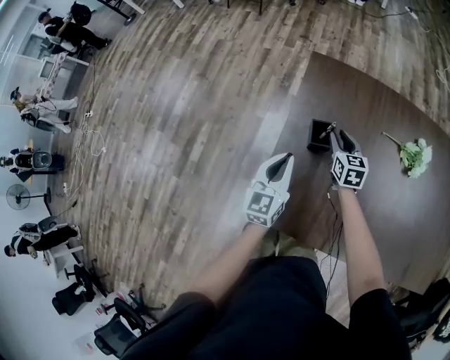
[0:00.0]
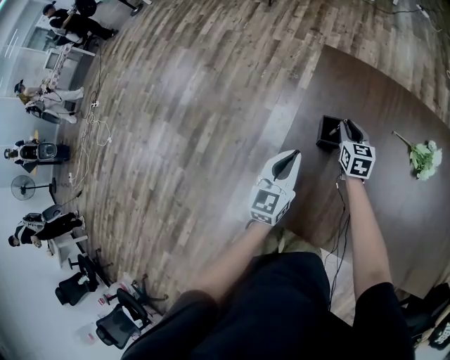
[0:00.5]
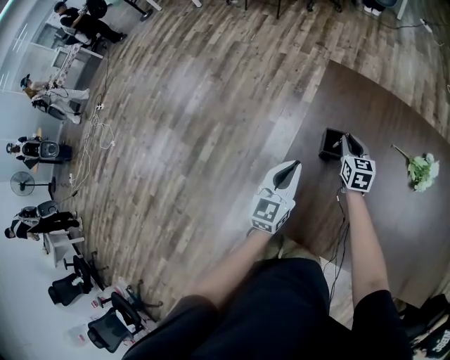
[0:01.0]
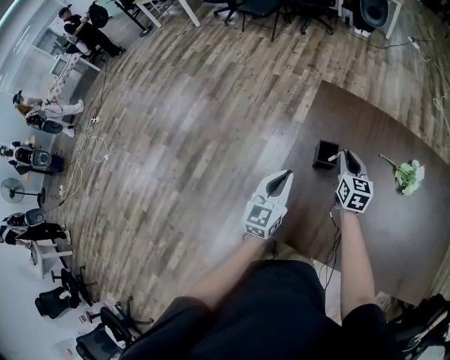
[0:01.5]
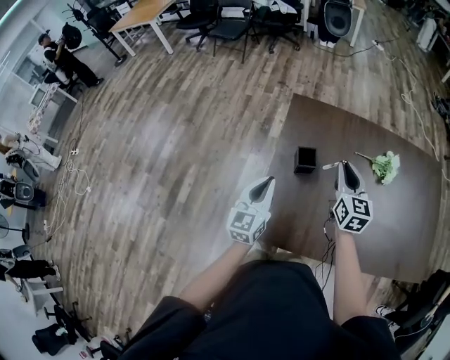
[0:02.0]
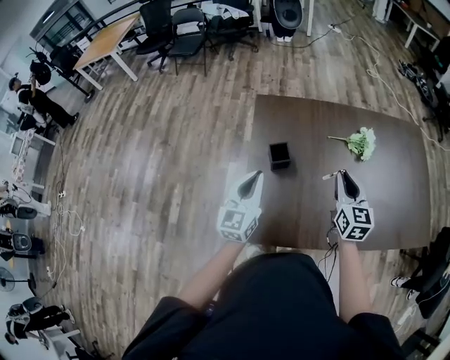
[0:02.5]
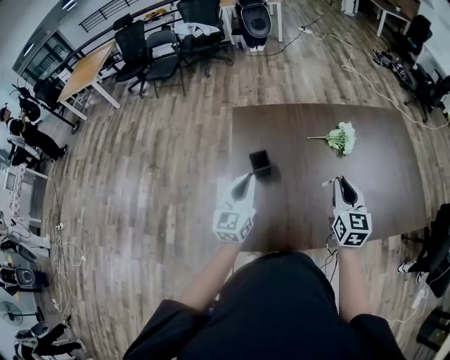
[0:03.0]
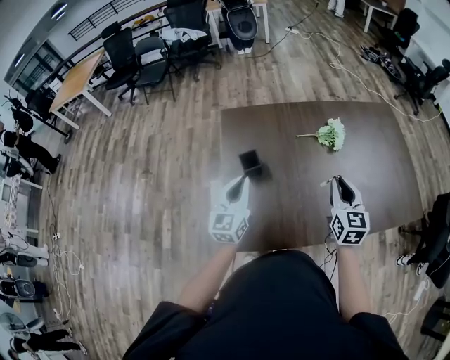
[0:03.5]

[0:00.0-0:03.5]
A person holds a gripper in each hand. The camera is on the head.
0:00.0 to 0:02.0: The left gripper goes approximately 15 cm upward, backward and to the left. The right gripper shifts approximately 25 cm upward and backward, and changes its angle by approximately 20 degrees.
0:02.0 to 0:03.5: The right gripper moves to the right and backward, some 25 cm, while the left gripper goes approximately 10 cm to the right.

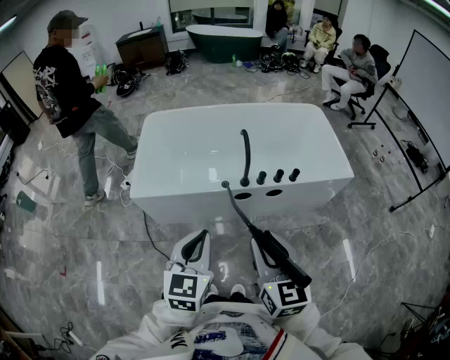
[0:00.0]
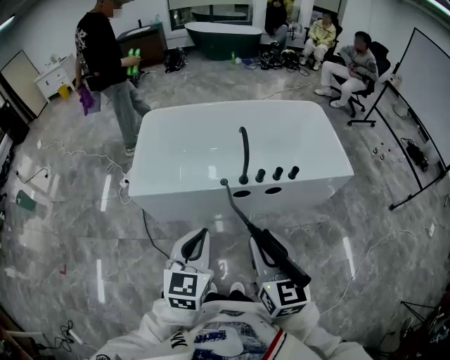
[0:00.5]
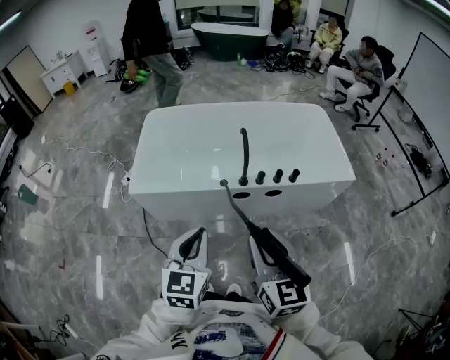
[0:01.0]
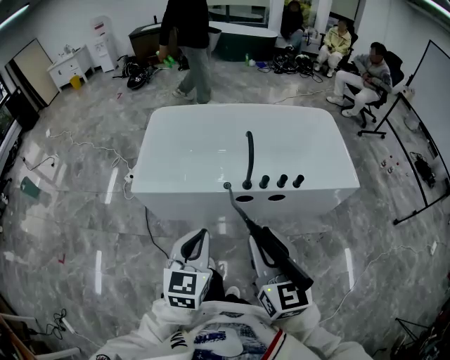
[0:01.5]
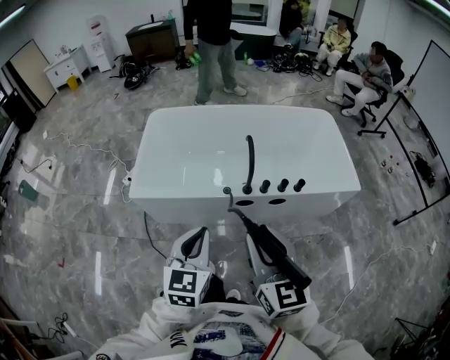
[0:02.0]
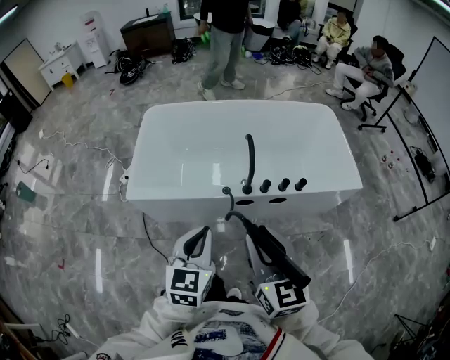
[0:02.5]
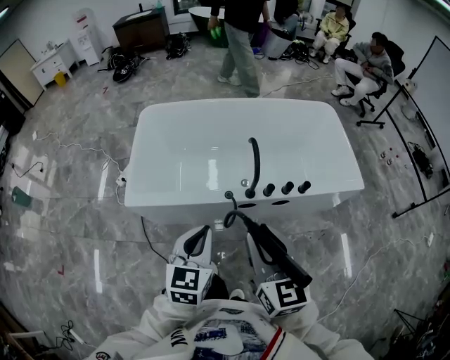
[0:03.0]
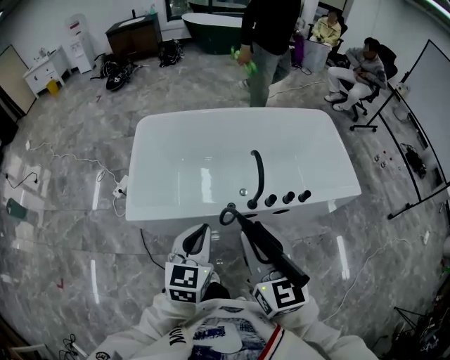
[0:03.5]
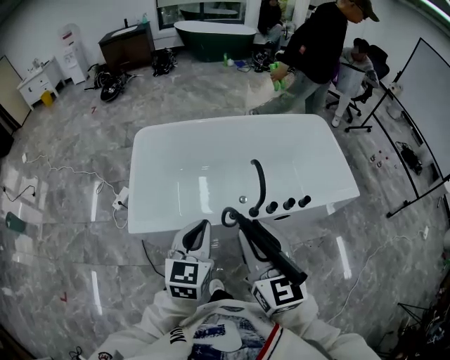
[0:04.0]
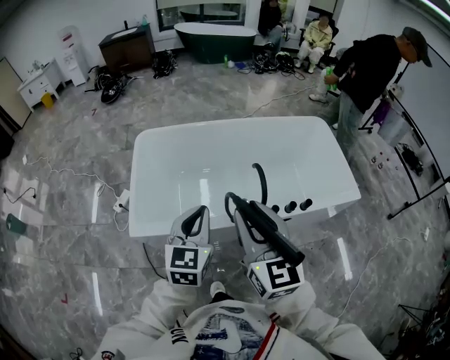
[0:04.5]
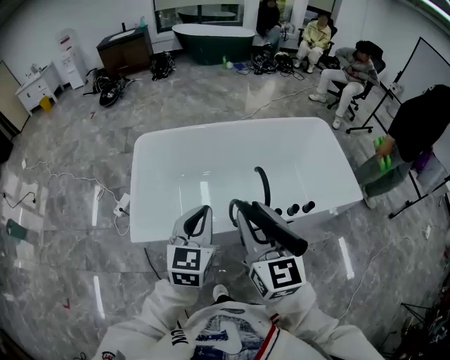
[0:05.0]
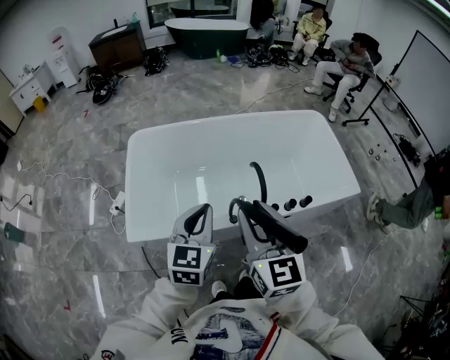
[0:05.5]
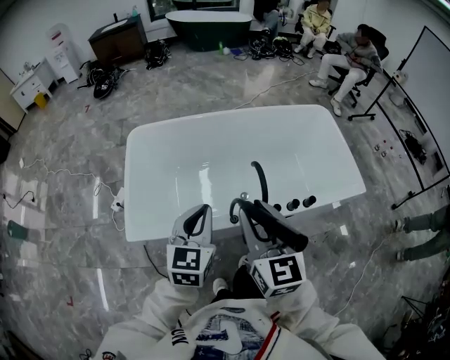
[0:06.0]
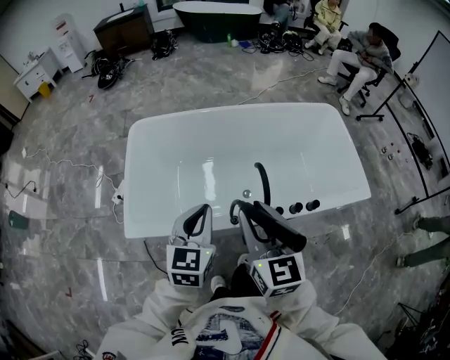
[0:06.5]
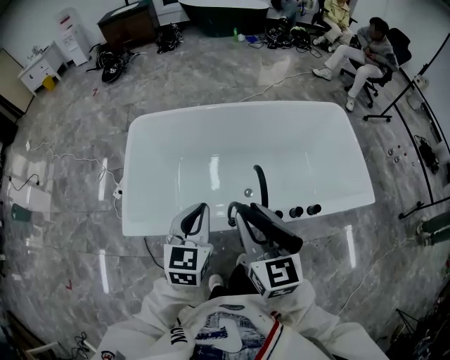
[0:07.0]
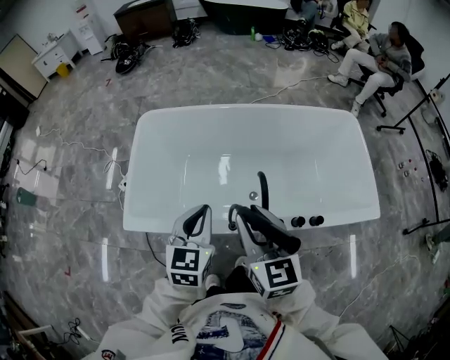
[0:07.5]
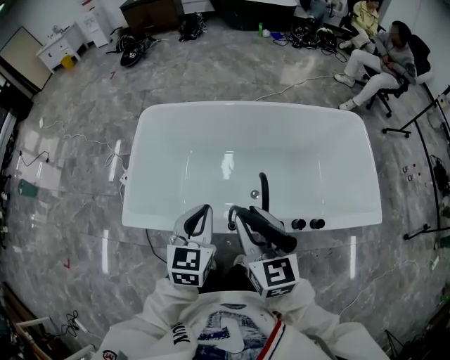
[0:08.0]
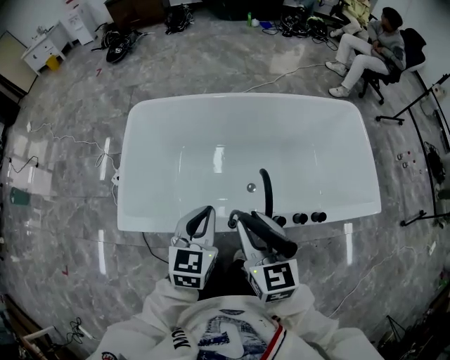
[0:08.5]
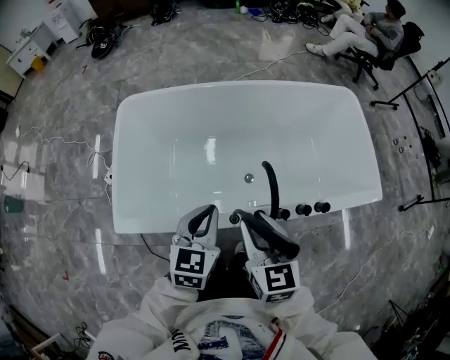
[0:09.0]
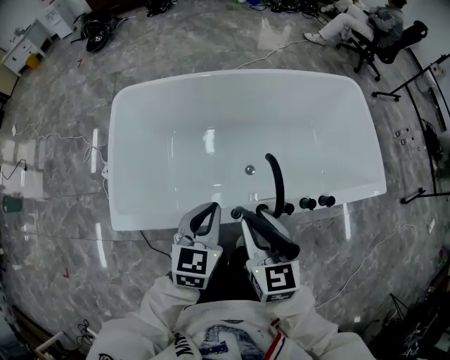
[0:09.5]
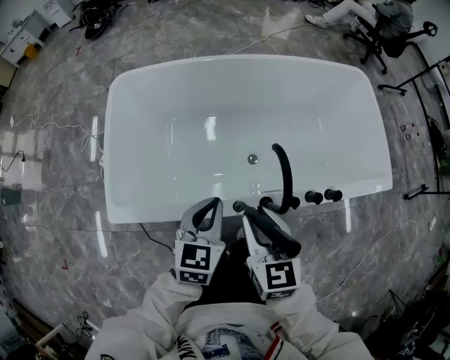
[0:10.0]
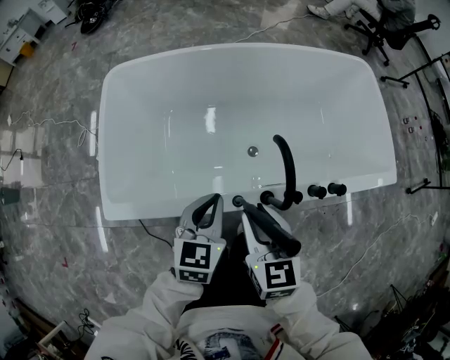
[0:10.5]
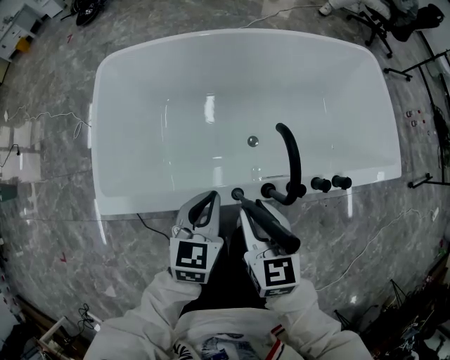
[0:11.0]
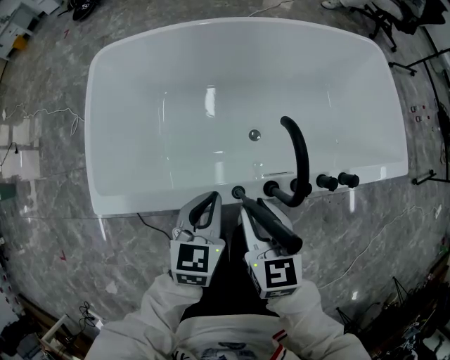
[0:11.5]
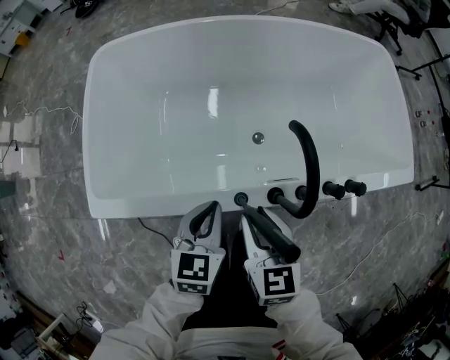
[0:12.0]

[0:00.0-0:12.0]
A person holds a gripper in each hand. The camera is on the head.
0:00.0 to 0:02.0: The two grippers go some 5 cm forward.
0:02.0 to 0:04.0: Both grippers move forward and to the left, roughly 20 cm.
0:04.0 to 0:06.0: The two grippers go some 10 cm forward.
0:06.0 to 0:08.0: The left gripper travels forward and downward by some 10 cm; the right gripper heads downward and forward, covering roughly 10 cm.
0:08.0 to 0:10.0: The two grippers go approximately 15 cm downward.
0:10.0 to 0:12.0: The grippers both shift downward by some 10 cm.

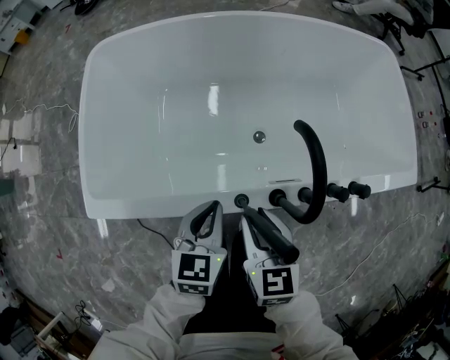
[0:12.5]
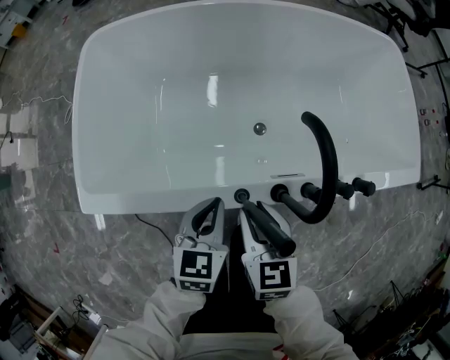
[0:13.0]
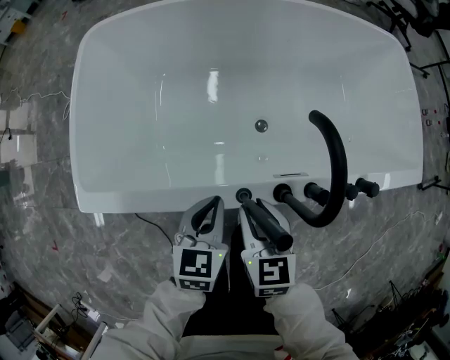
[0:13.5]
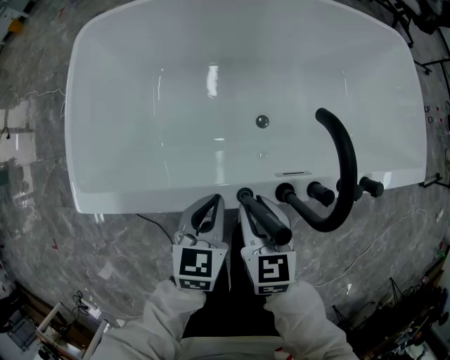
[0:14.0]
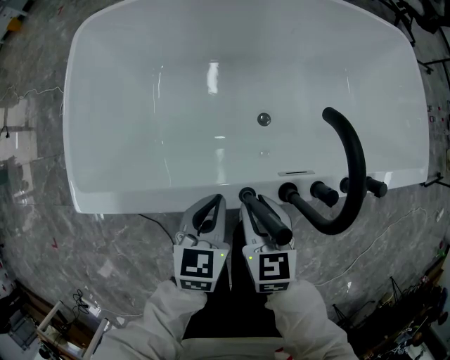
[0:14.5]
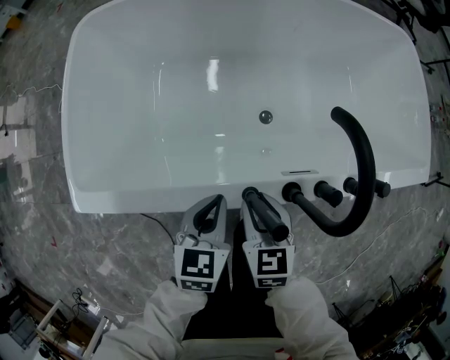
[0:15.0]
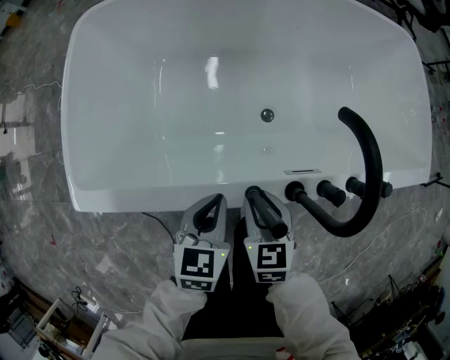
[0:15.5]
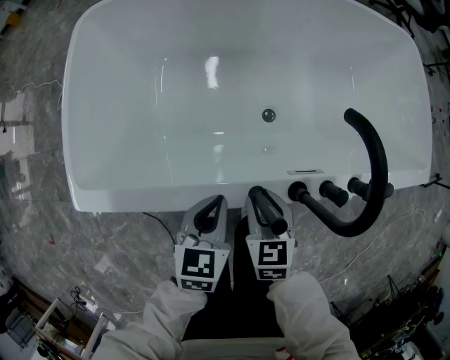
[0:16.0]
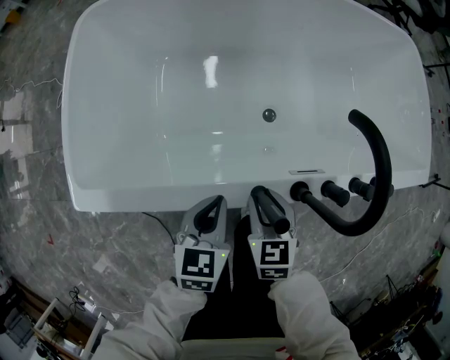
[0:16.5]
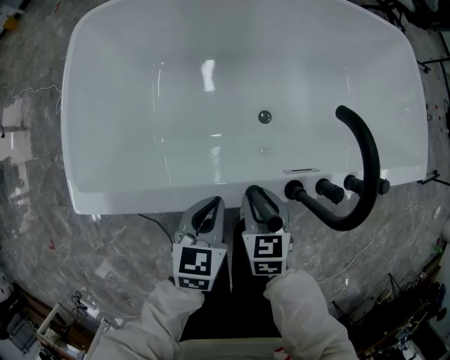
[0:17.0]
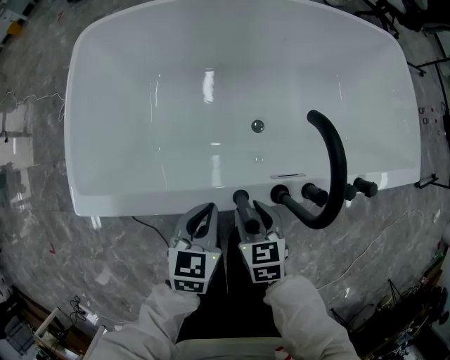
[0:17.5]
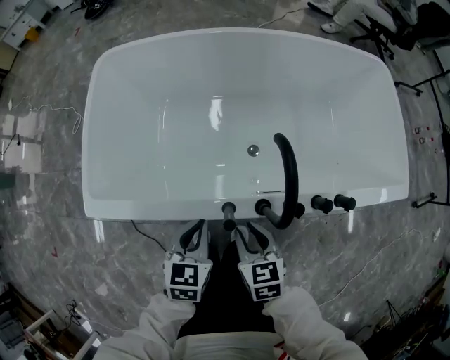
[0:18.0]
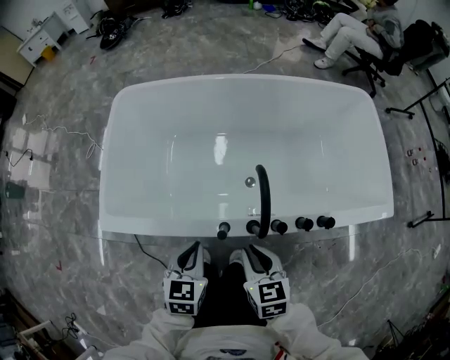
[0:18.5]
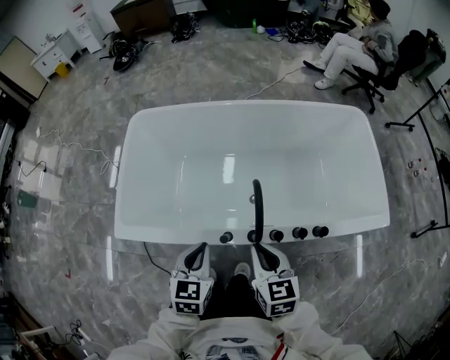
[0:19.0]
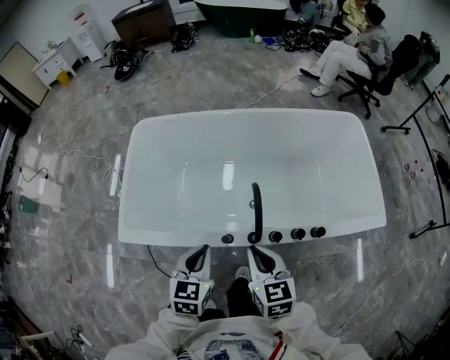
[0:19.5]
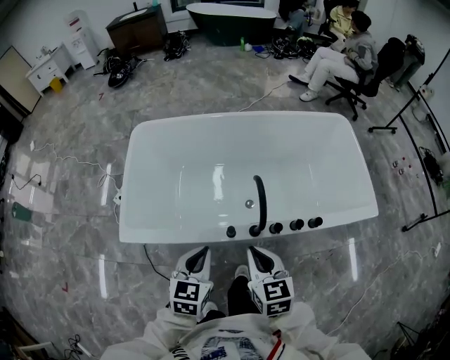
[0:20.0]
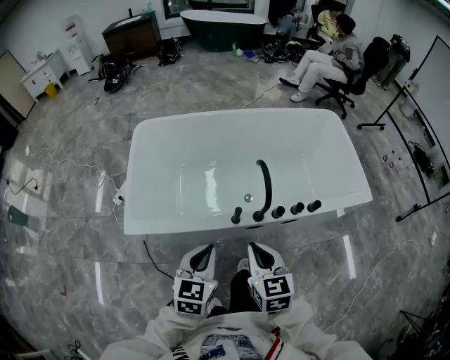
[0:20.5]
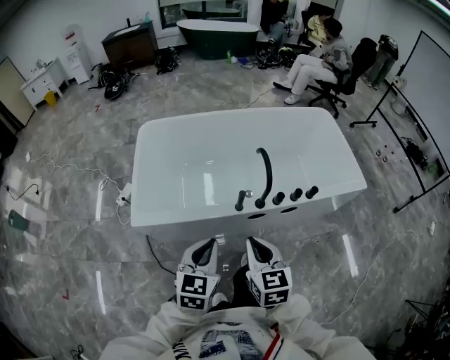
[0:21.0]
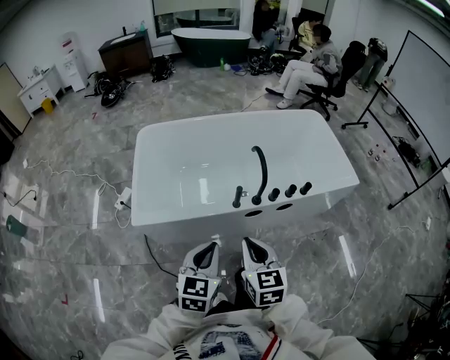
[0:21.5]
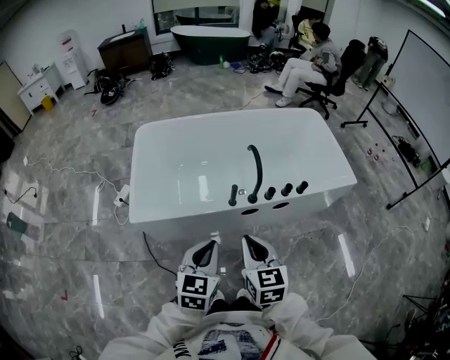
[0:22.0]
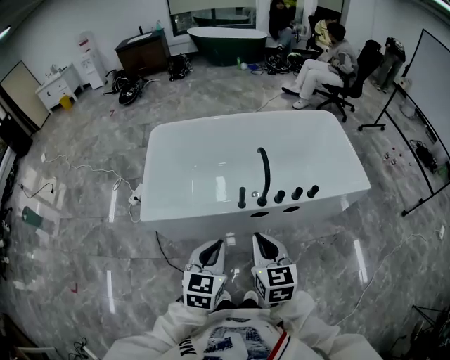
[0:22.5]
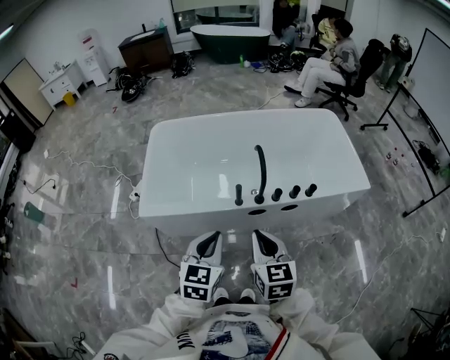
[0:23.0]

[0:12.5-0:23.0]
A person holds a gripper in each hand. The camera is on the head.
0:12.5 to 0:14.5: Both grippers move downward, approximately 5 cm.
0:14.5 to 0:16.5: The grippers stay close to where they were, moving slightly.
0:16.5 to 0:19.0: The two grippers go about 25 cm upward. The right gripper closes its fingers.
0:19.0 to 0:21.0: The left gripper is displaced backward, upward and to the left by approximately 20 cm, while the right gripper heads backward, to the left and upward, covering approximately 25 cm.
0:21.0 to 0:23.0: Both grippers move to the right, about 5 cm.

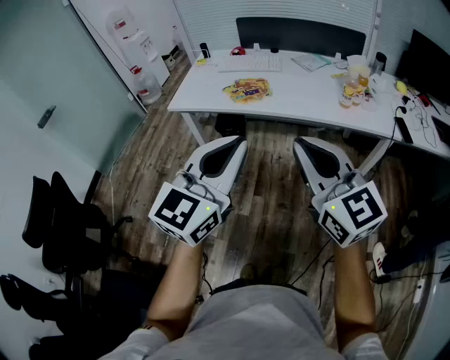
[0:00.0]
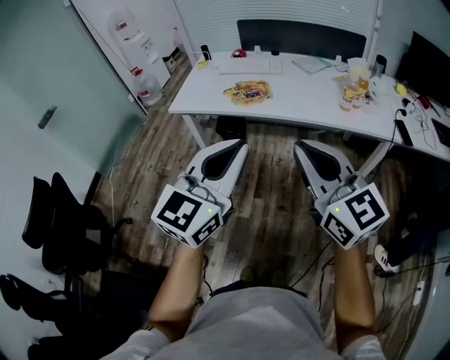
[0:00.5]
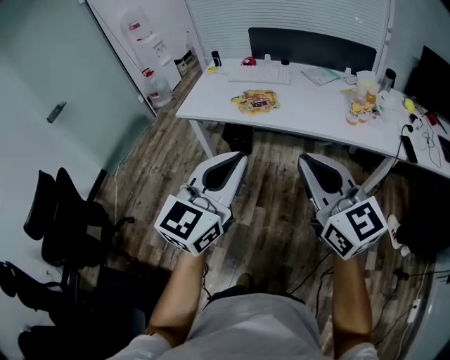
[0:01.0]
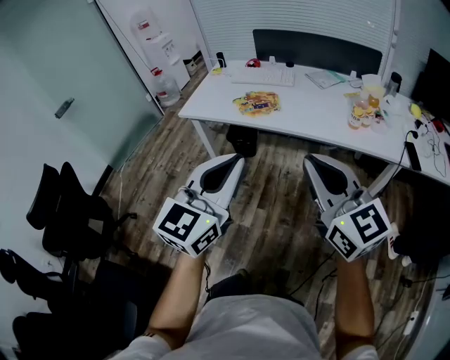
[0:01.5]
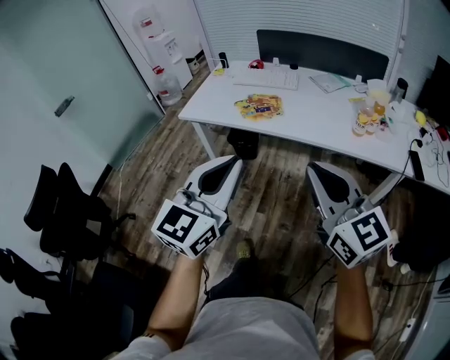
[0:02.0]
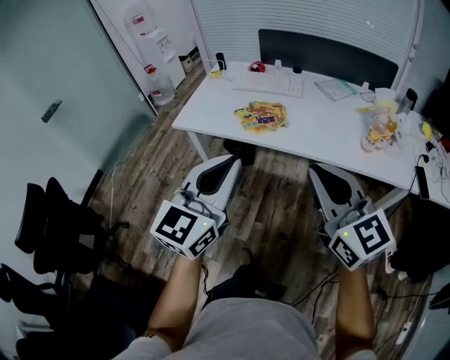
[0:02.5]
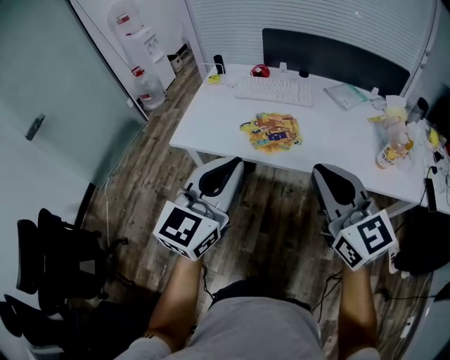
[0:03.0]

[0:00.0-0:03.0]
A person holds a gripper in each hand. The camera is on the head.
0:00.0 to 0:01.5: The right gripper goes some 5 cm to the right.
0:01.5 to 0:03.0: Both grippers move forward, approximately 25 cm.
